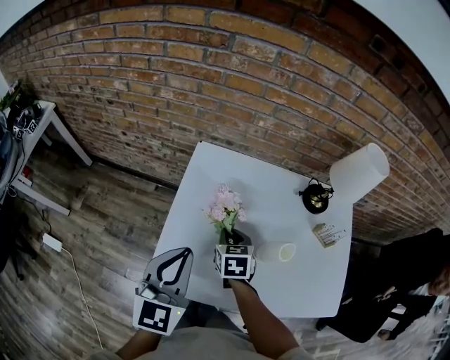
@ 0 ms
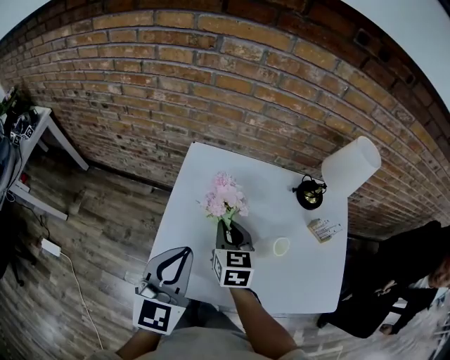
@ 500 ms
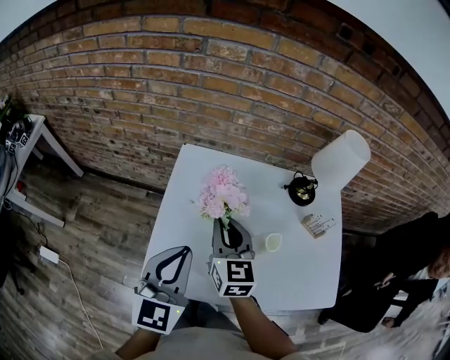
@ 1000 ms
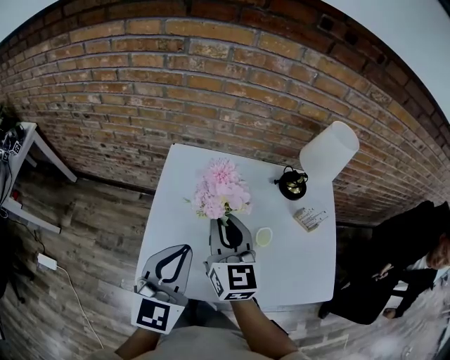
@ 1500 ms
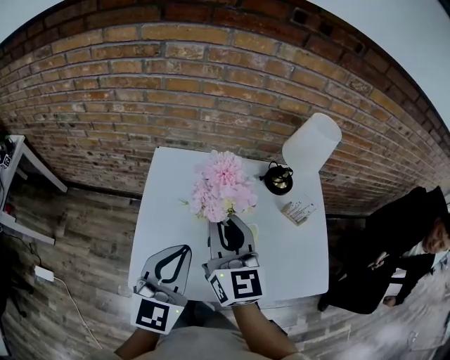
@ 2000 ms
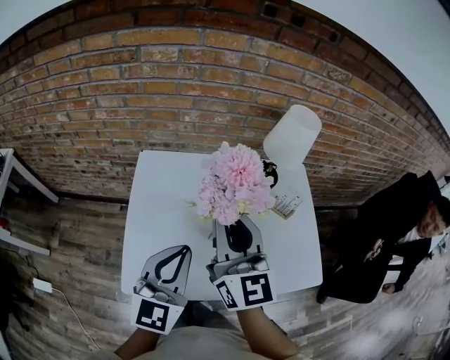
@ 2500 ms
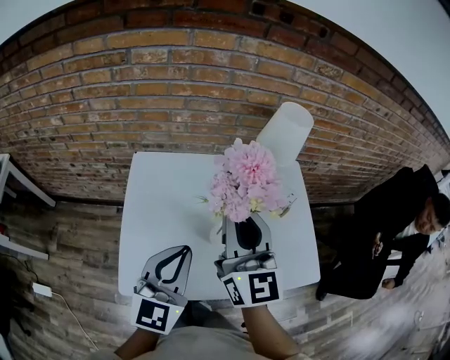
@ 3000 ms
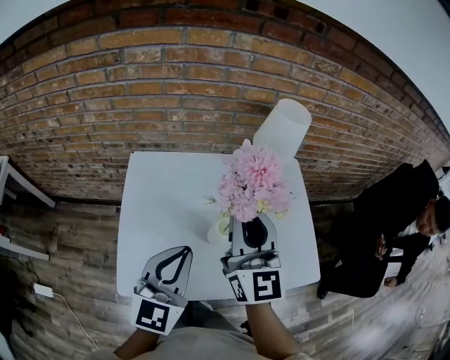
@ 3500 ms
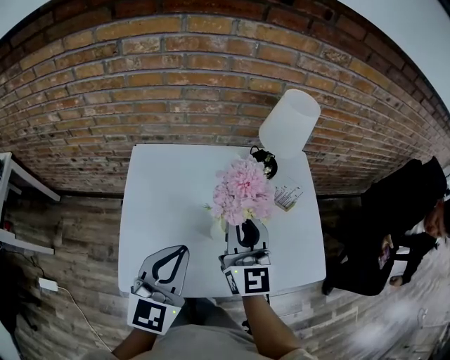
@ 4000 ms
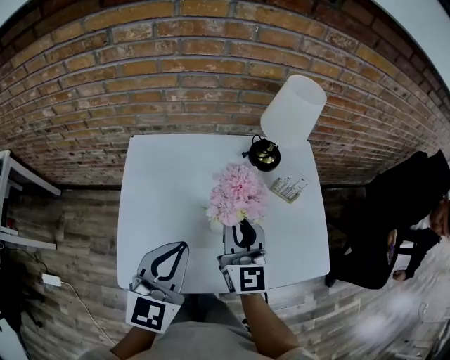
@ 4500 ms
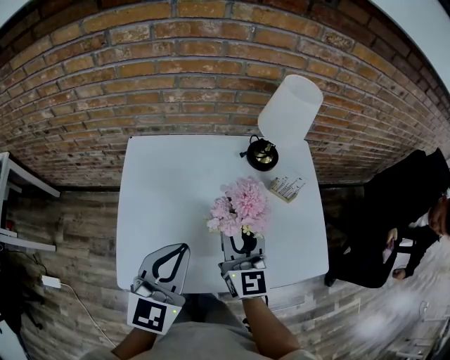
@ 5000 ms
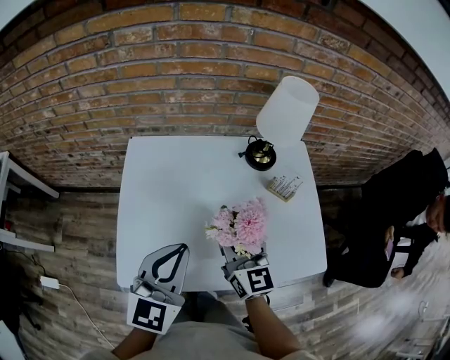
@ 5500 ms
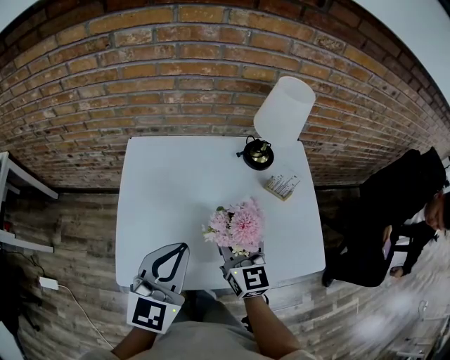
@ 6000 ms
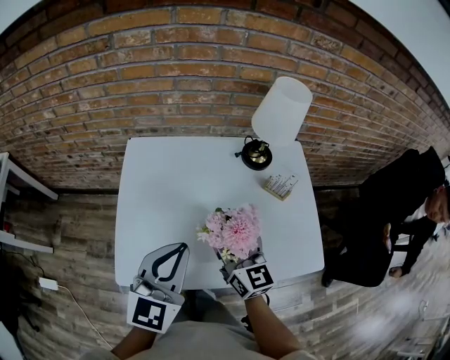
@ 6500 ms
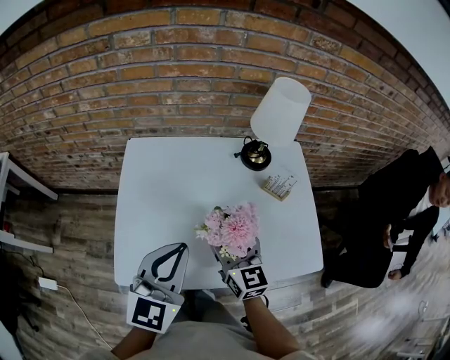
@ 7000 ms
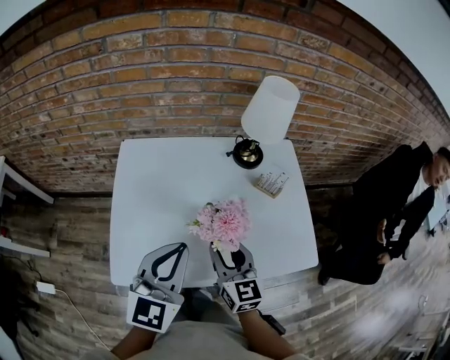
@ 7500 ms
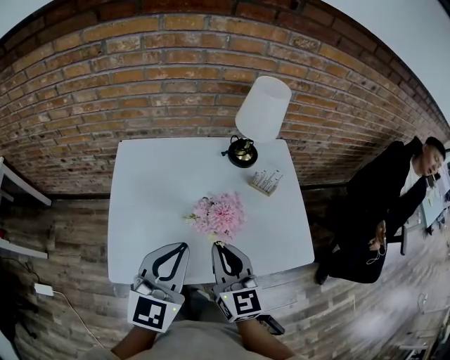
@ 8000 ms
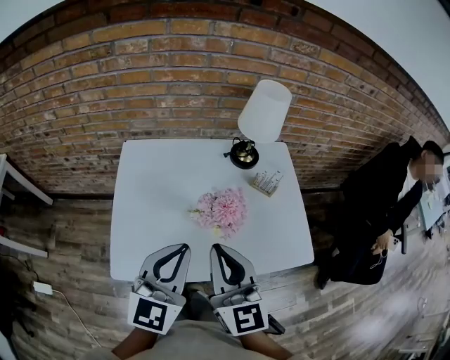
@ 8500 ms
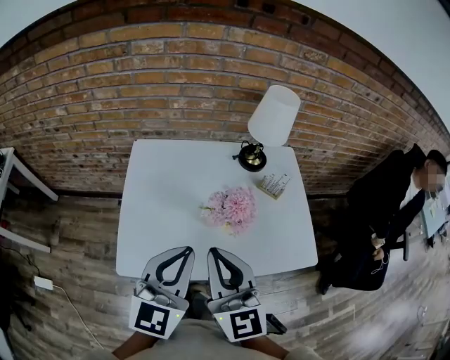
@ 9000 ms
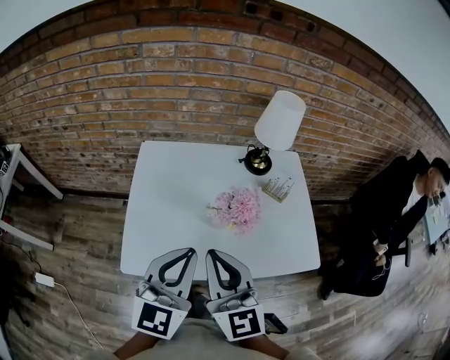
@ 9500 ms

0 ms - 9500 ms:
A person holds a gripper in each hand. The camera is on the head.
0 ms - 2000 ms: The left gripper heads to the right, covering about 10 cm; the right gripper is displaced upward by approximately 25 cm, and tilts its fingers approximately 50 degrees upward.
2000 ms - 4000 ms: The left gripper heads to the right, covering approximately 5 cm. The right gripper shifts roughly 10 cm to the right.
4000 ms - 5500 ms: The right gripper moves downward, roughly 10 cm, and opens.
5500 ms - 7500 ms: The right gripper goes approximately 5 cm backward.
7500 ms - 9500 ms: The right gripper moves upward, backward and to the left, some 20 cm, and closes; the left gripper moves backward, approximately 5 cm.

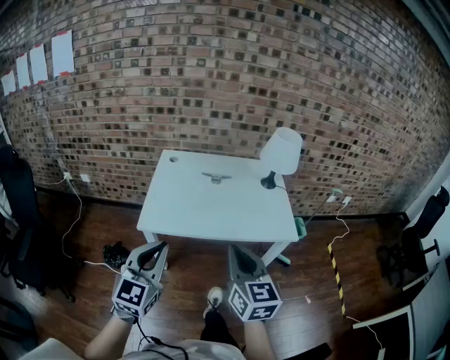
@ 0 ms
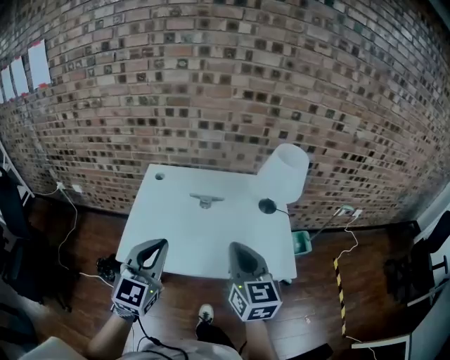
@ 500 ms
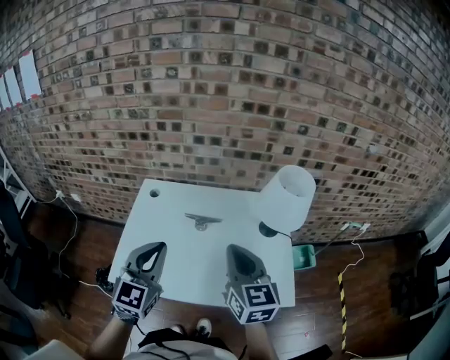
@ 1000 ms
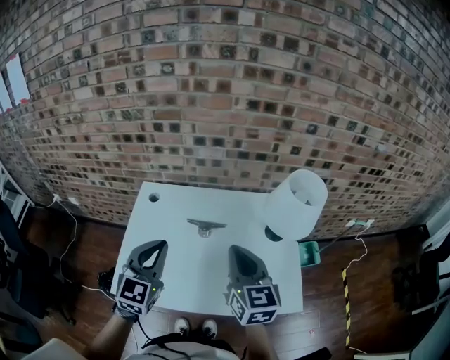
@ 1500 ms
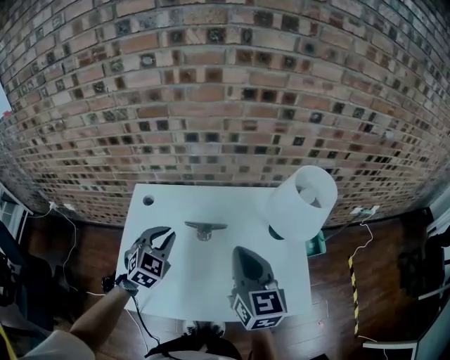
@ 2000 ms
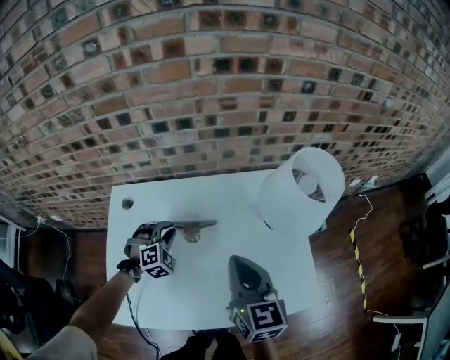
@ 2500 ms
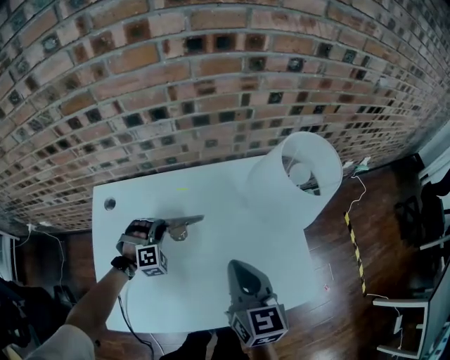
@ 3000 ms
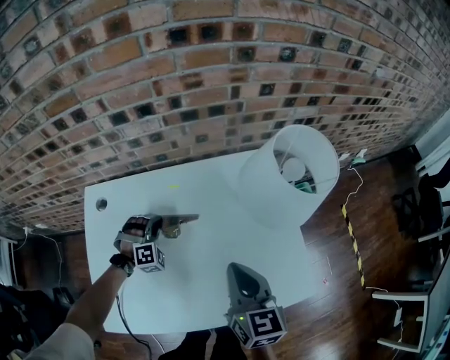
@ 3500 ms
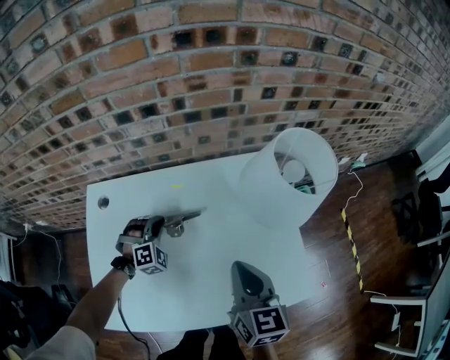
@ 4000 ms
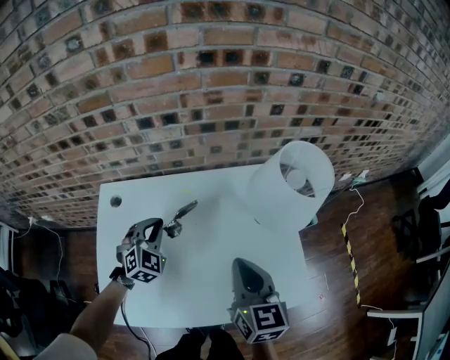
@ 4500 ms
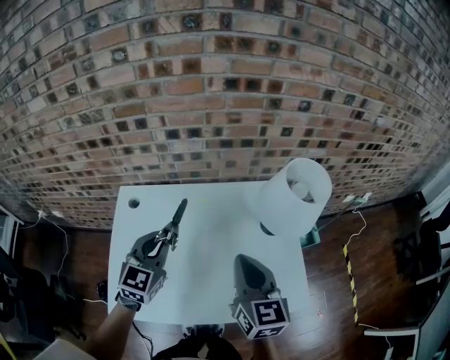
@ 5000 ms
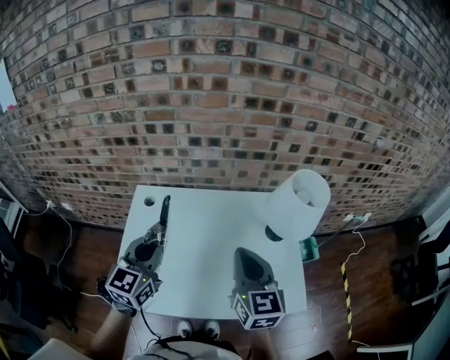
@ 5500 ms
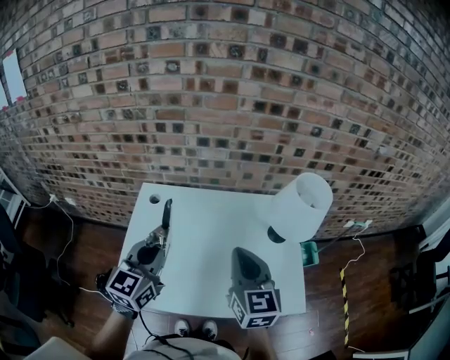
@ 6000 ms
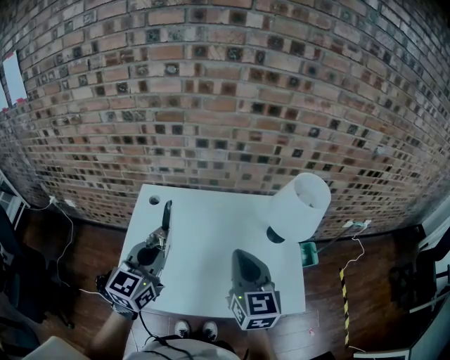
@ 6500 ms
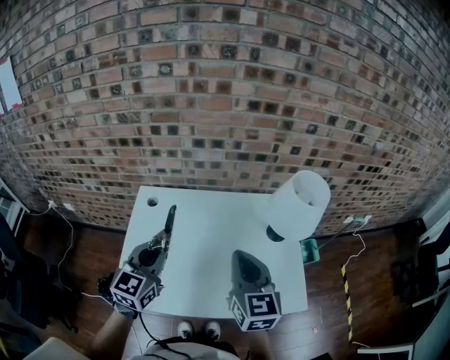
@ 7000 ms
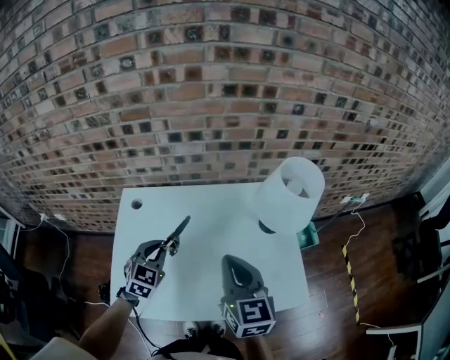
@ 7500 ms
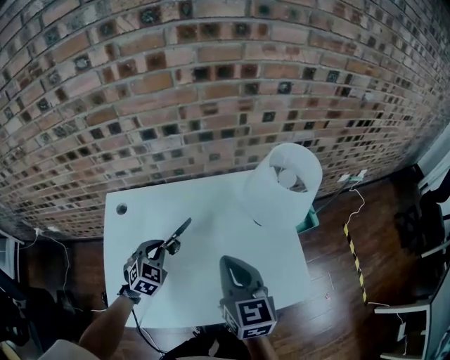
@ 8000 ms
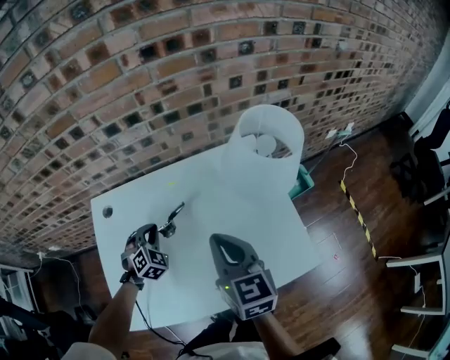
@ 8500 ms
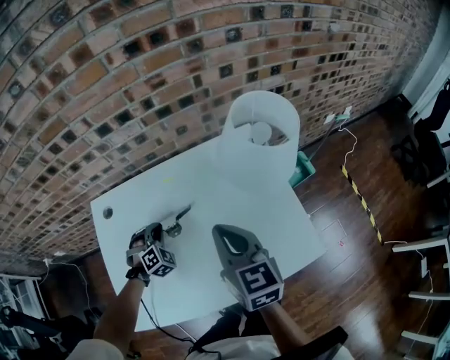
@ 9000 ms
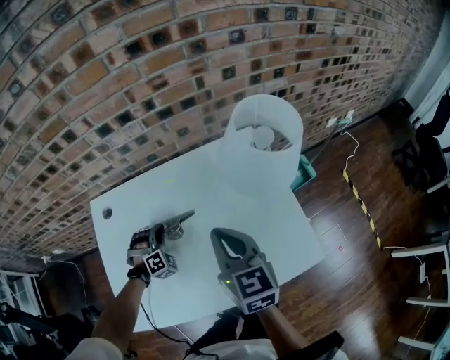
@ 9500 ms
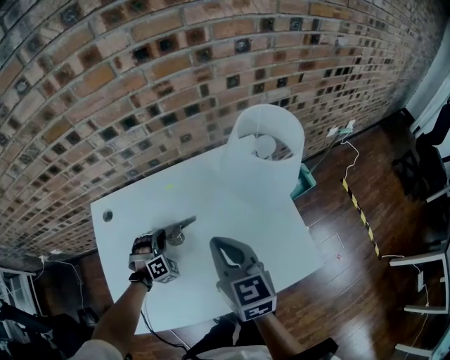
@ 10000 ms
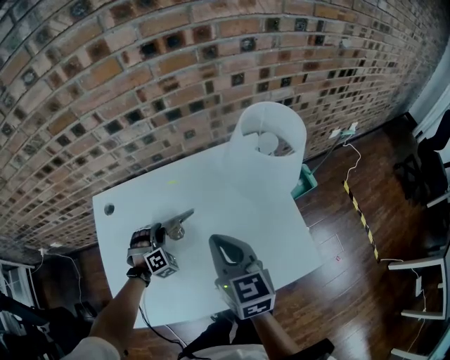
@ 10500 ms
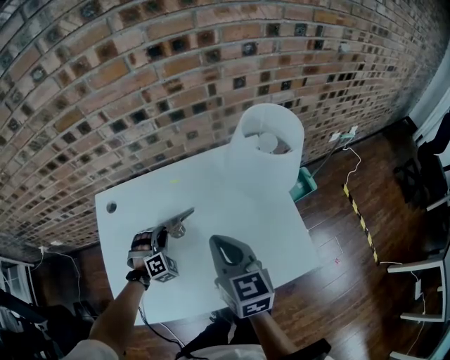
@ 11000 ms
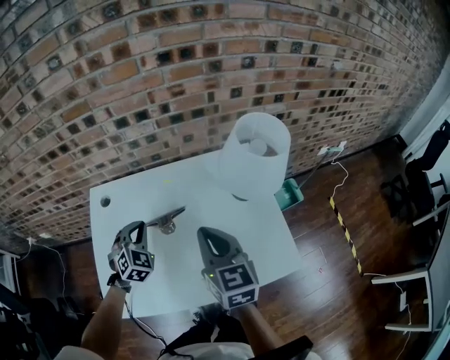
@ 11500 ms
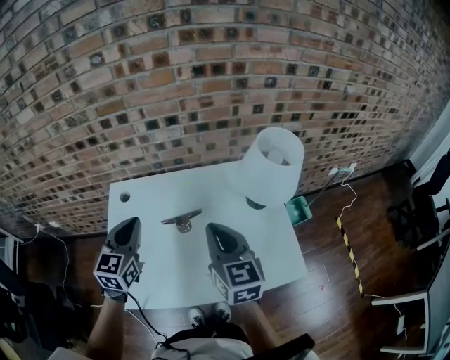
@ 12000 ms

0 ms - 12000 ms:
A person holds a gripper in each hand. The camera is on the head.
0 ms - 2000 ms: The two grippers travel together, forward, roughly 50 cm. The left gripper swivels roughly 30 degrees.
2000 ms - 4000 ms: The left gripper shifts about 20 cm downward and forward, and rolls clockwise, seen from behind, by about 40 degrees. The right gripper travels downward and to the right by about 15 cm.
4000 ms - 6000 ms: The left gripper travels upward and backward by about 35 cm, and rolls counterclockwise, seen from behind, by approximately 70 degrees, while the right gripper travels upward and to the left by approximately 15 cm, and swivels about 20 degrees.
6000 ms - 8000 ms: The left gripper travels downward and forward by some 25 cm, and tips its fingers downward by about 40 degrees. The right gripper heads downward, covering approximately 5 cm.
8000 ms - 10000 ms: The left gripper travels downward by approximately 10 cm, and rolls clockwise, seen from behind, by approximately 40 degrees.
10000 ms - 12000 ms: The right gripper travels upward by approximately 5 cm; the left gripper goes roughly 25 cm upward, and rotates around the line of its fingers by about 70 degrees, counterclockwise from behind.

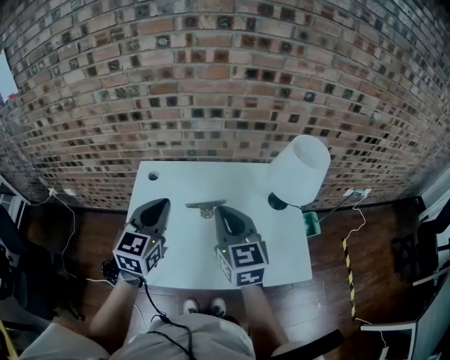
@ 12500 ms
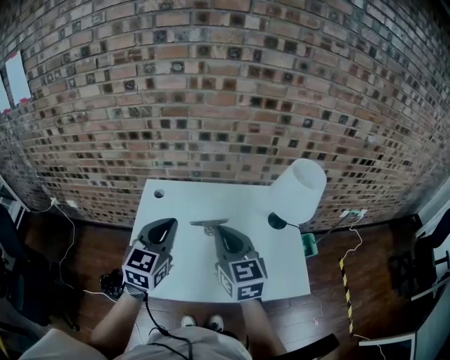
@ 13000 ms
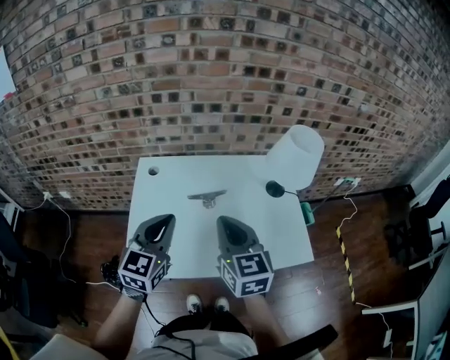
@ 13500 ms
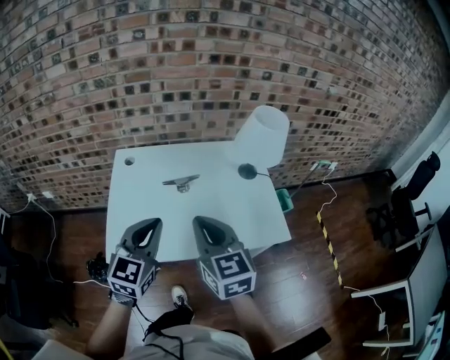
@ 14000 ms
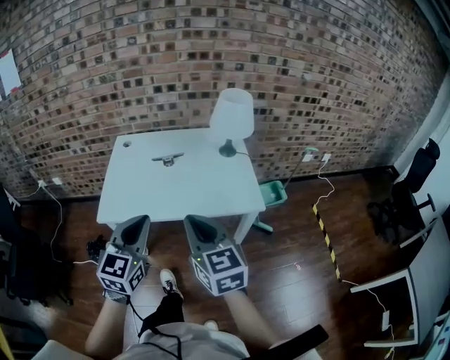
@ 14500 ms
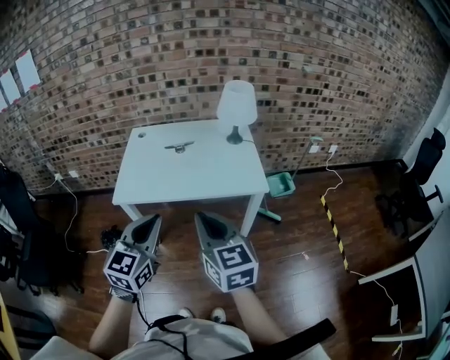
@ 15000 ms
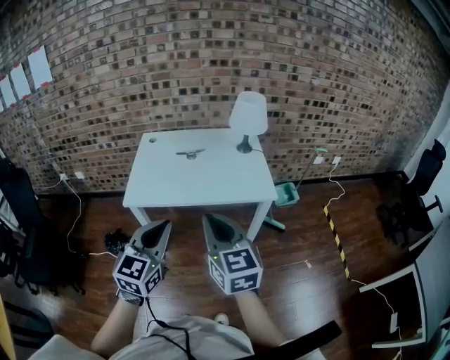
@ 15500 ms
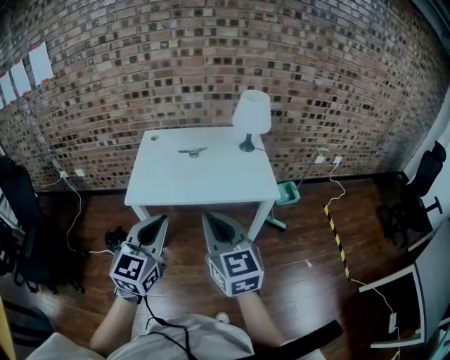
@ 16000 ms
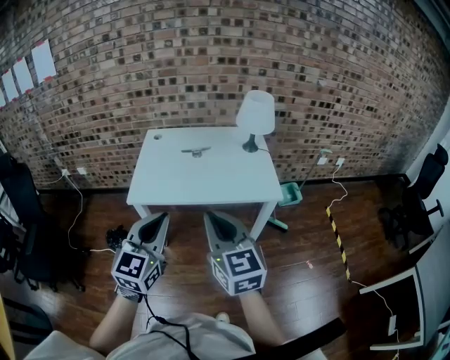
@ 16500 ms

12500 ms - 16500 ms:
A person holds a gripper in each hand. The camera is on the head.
12500 ms - 14500 ms: Both grippers move backward, about 35 cm.
14500 ms - 16500 ms: Both grippers move backward, some 10 cm.

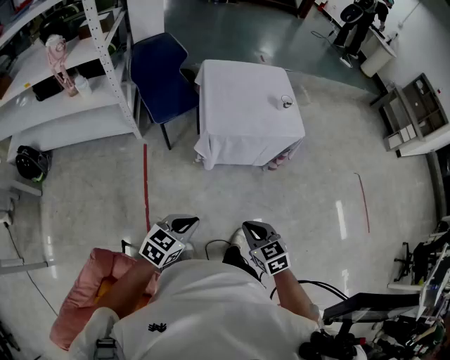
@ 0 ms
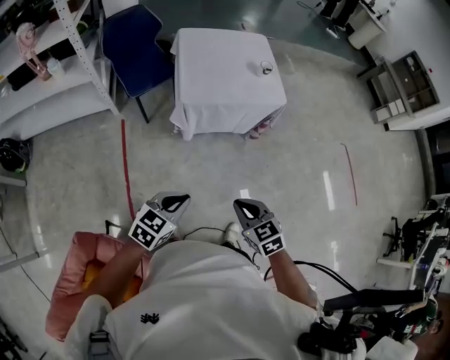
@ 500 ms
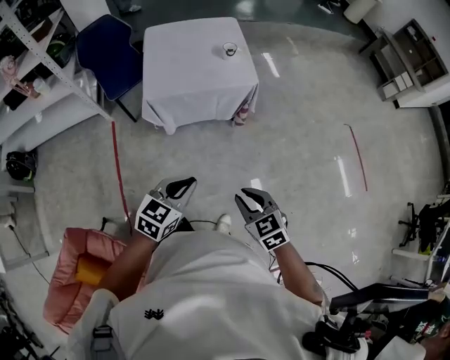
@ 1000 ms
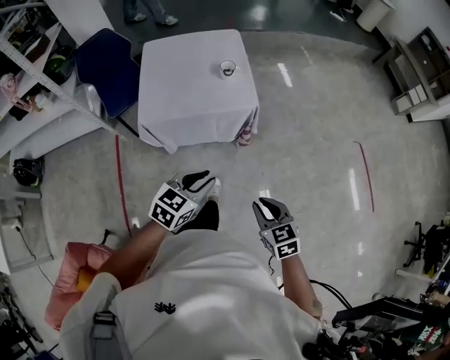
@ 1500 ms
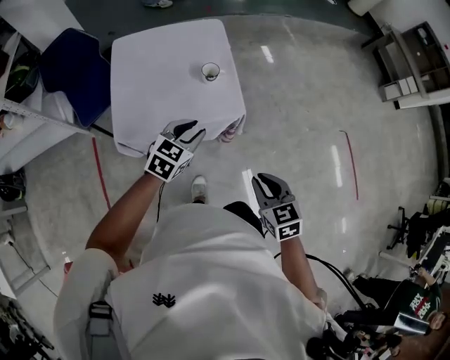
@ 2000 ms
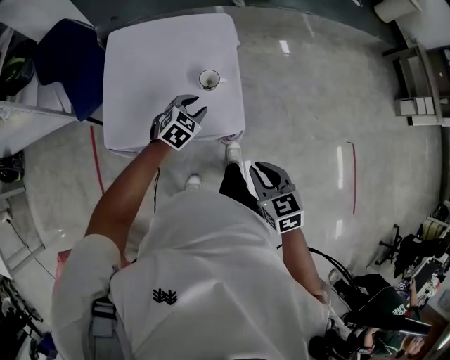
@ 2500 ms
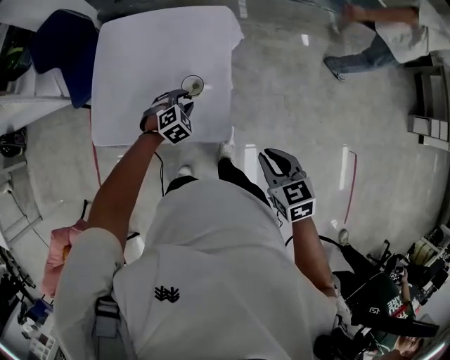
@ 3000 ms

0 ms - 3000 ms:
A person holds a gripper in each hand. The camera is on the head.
0 ms - 1500 ms: The two grippers travel together, to the right and forward, approximately 40 cm.
1500 ms - 3000 ms: The two grippers travel together, about 60 cm. The left gripper rotates some 40 degrees.
